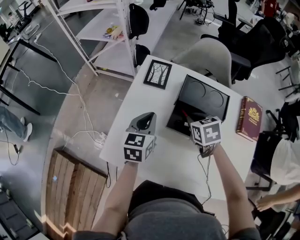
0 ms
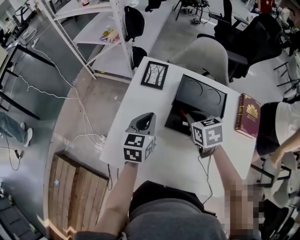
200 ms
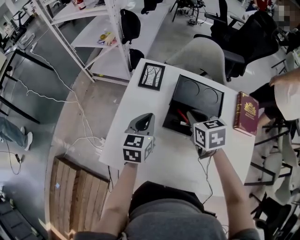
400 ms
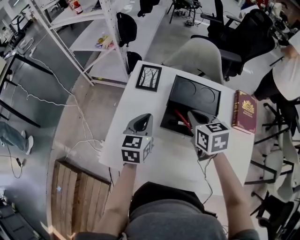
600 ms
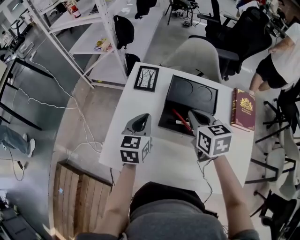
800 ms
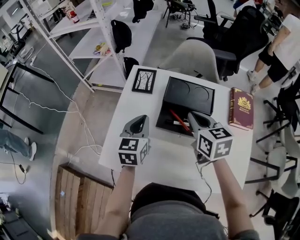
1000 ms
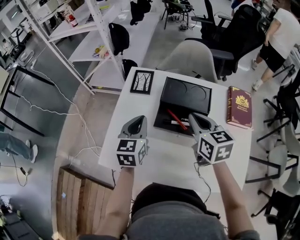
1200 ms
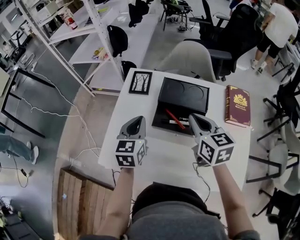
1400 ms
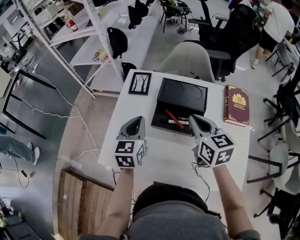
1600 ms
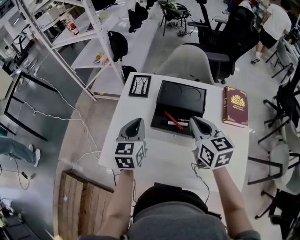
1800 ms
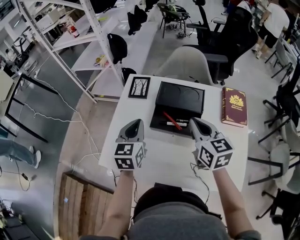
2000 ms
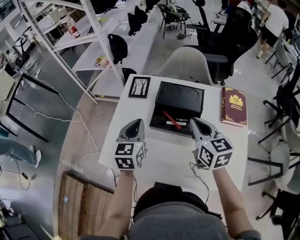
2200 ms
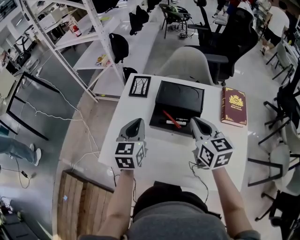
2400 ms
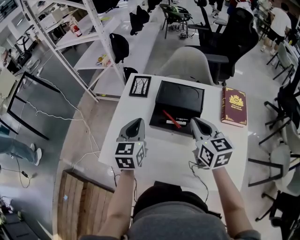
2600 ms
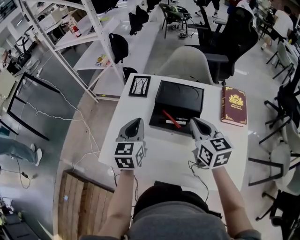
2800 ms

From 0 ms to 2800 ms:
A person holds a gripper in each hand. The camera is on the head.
From 0 ms to 1400 ms: The left gripper goes about 5 cm upward, while the right gripper goes about 15 cm upward and backward, and tilts its fingers roughly 30 degrees upward.
From 1400 ms to 2800 ms: The grippers move only a little.

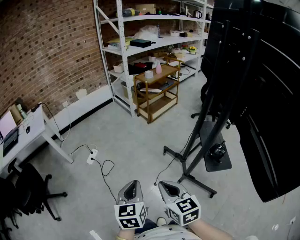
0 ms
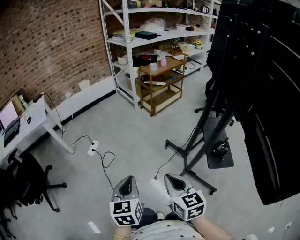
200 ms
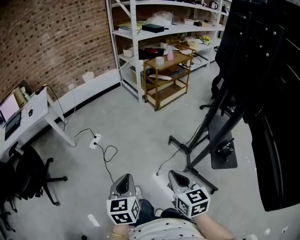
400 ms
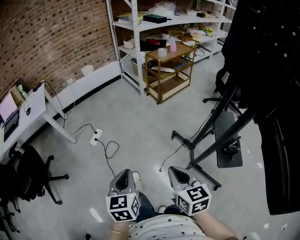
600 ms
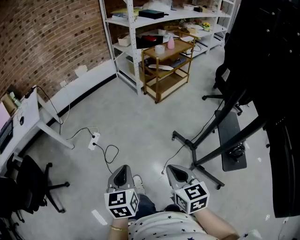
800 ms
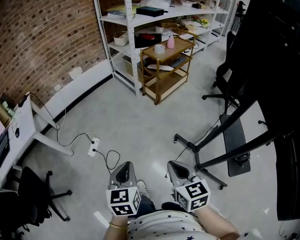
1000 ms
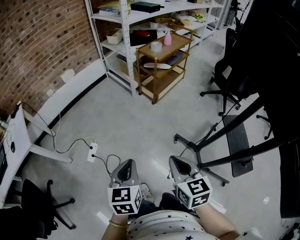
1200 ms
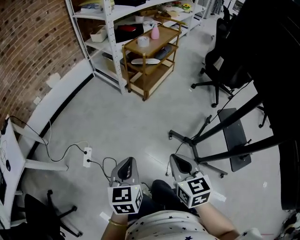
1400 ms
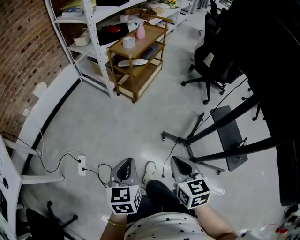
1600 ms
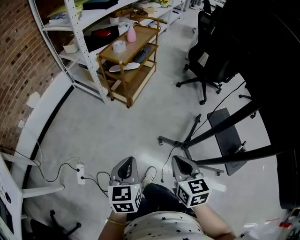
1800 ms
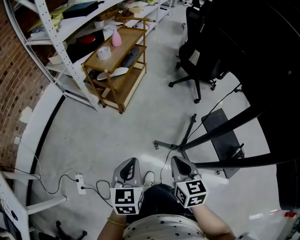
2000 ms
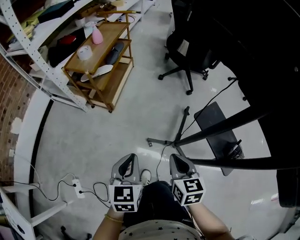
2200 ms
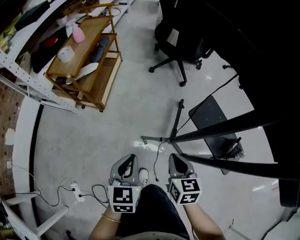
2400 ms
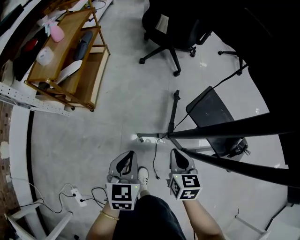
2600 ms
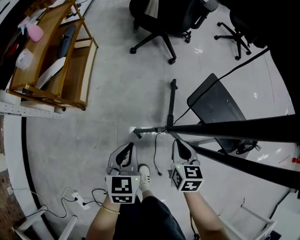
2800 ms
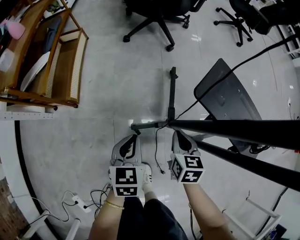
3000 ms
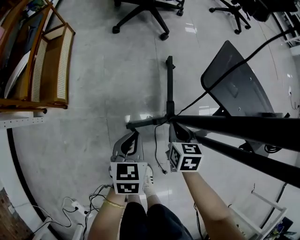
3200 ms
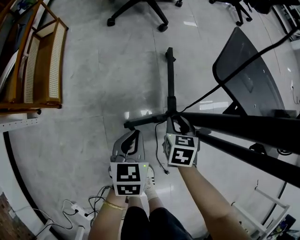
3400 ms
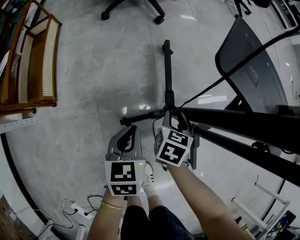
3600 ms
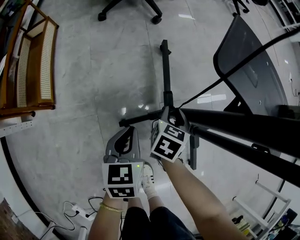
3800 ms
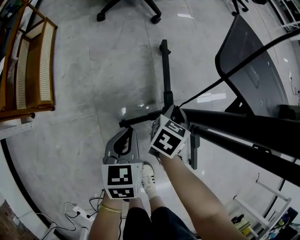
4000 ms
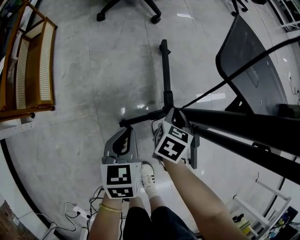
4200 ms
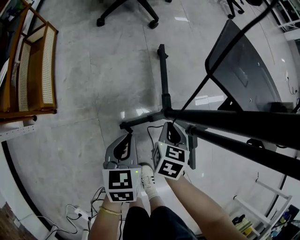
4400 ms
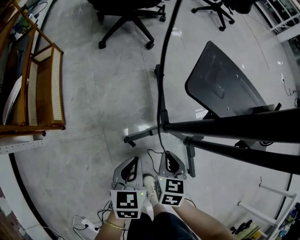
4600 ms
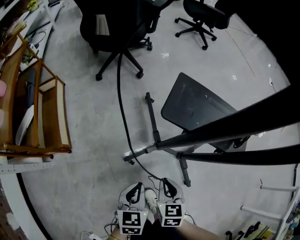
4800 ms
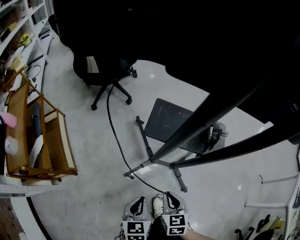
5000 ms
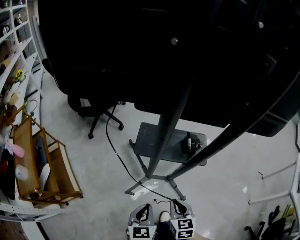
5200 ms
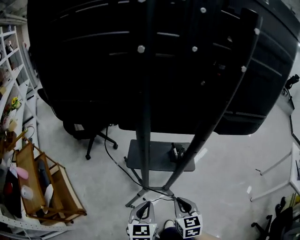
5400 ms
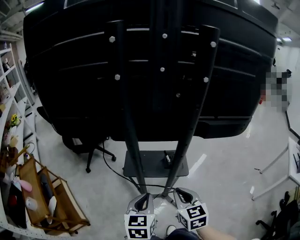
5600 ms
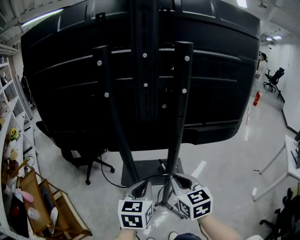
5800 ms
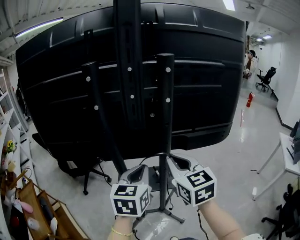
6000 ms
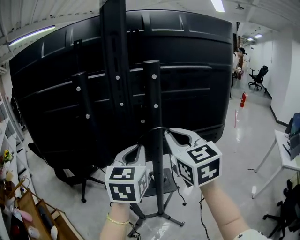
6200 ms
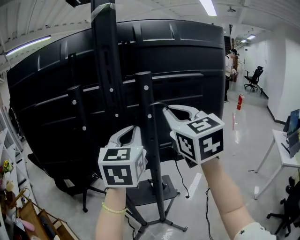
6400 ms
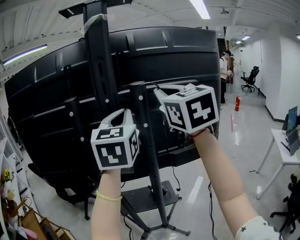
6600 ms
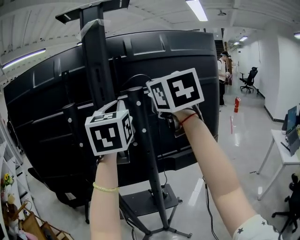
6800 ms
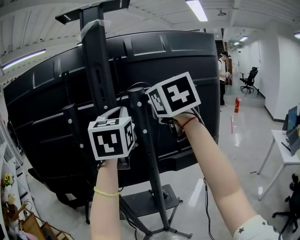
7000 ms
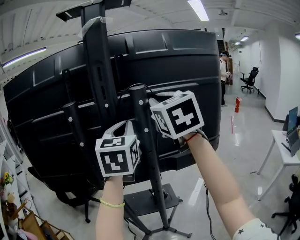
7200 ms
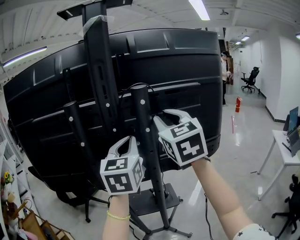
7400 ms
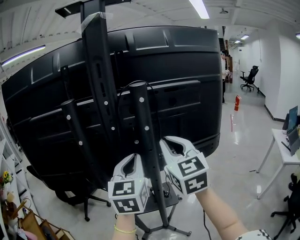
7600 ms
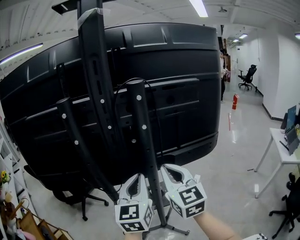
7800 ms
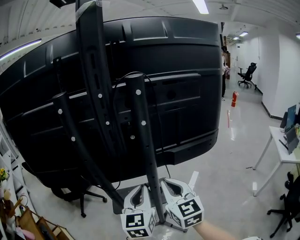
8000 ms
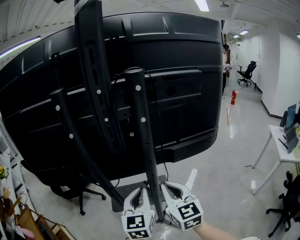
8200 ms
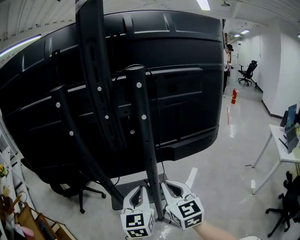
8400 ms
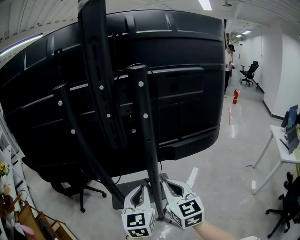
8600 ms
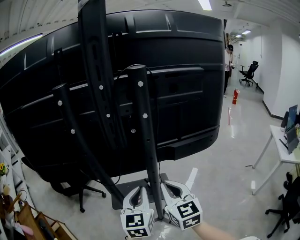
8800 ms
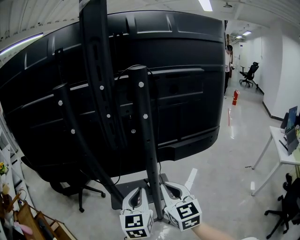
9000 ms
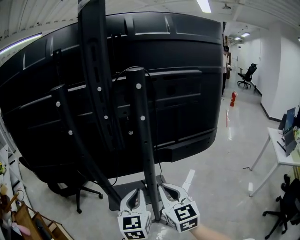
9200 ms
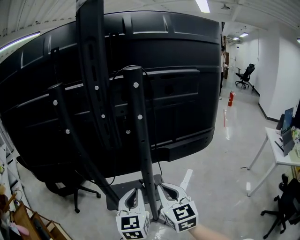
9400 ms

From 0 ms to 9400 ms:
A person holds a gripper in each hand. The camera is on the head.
From 0 ms to 1600 ms: The pair of grippers is taken about 40 cm. The right gripper rotates about 30 degrees, while the left gripper changes its angle by some 20 degrees.
From 1600 ms to 3200 ms: The left gripper shifts by approximately 60 cm, and rotates some 50 degrees. Meanwhile the right gripper heads downward, covering some 50 cm, and changes its angle by about 50 degrees.
From 3200 ms to 4800 ms: The right gripper moves upward and backward, approximately 20 cm, and opens, then closes again. The left gripper goes about 15 cm upward, backward and to the right.
From 4800 ms to 6200 ms: Both grippers travel together upward, about 70 cm. The right gripper angles its fingers upward, by approximately 40 degrees. Meanwhile the left gripper points its fingers approximately 30 degrees further upward.
From 6200 ms to 7800 ms: The right gripper moves about 20 cm upward and comes back, and opens, then closes again. Meanwhile the left gripper travels upward and back again, roughly 20 cm each way.
From 7800 ms to 9400 ms: Both grippers move downward, some 10 cm.

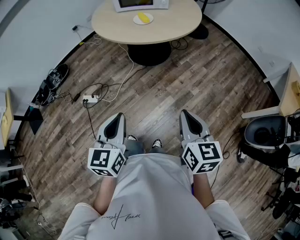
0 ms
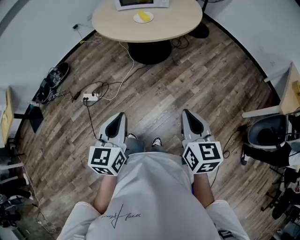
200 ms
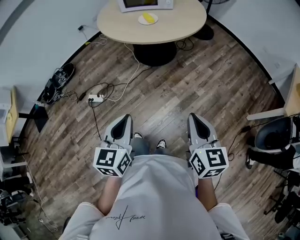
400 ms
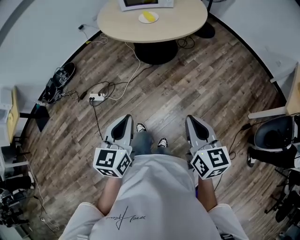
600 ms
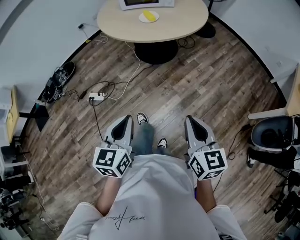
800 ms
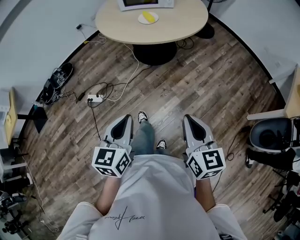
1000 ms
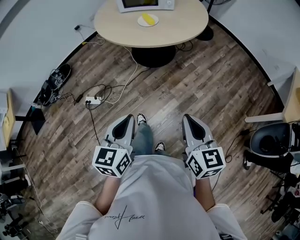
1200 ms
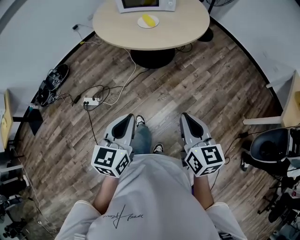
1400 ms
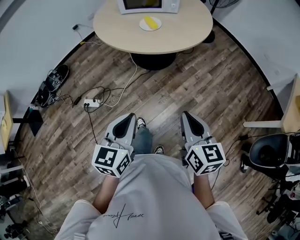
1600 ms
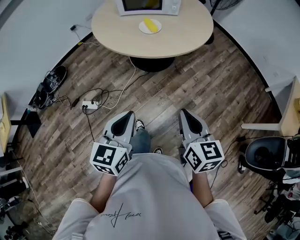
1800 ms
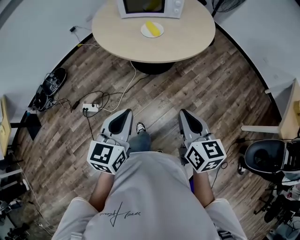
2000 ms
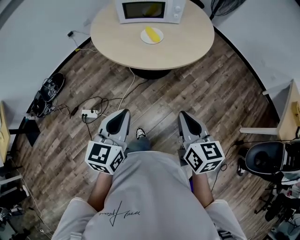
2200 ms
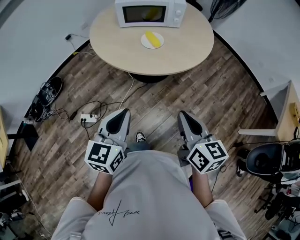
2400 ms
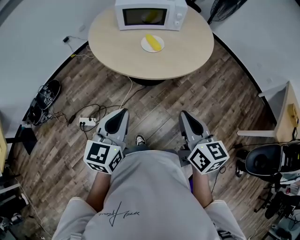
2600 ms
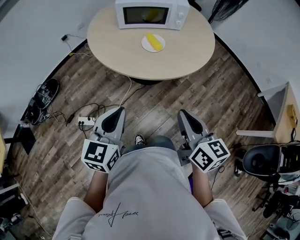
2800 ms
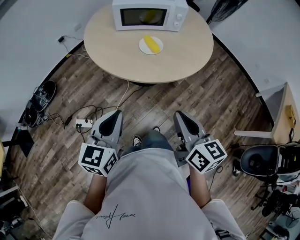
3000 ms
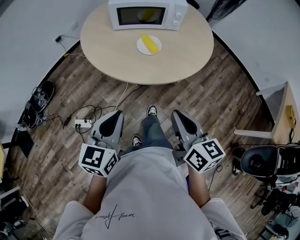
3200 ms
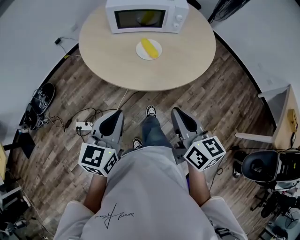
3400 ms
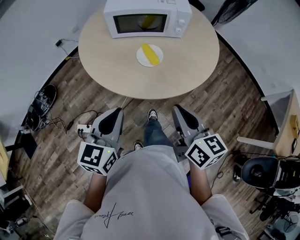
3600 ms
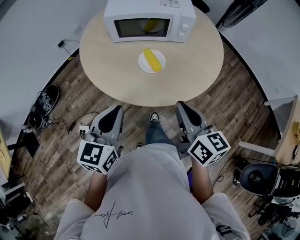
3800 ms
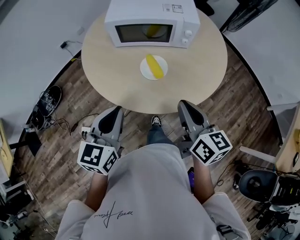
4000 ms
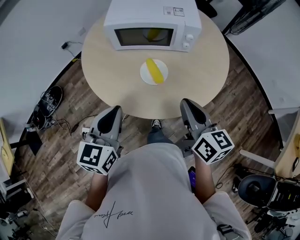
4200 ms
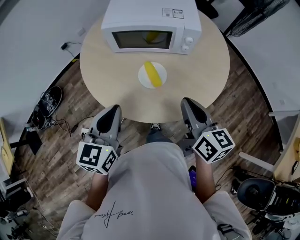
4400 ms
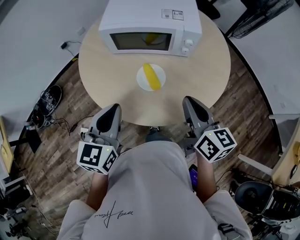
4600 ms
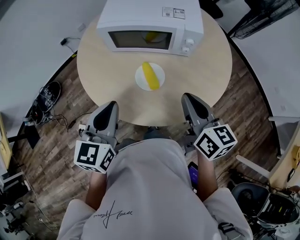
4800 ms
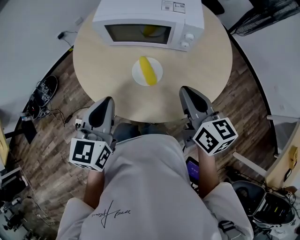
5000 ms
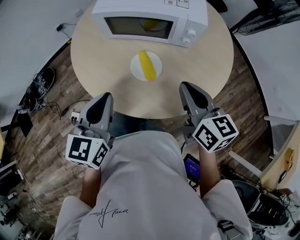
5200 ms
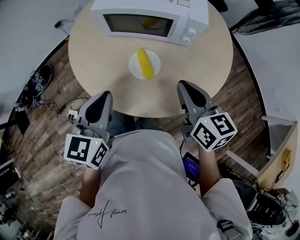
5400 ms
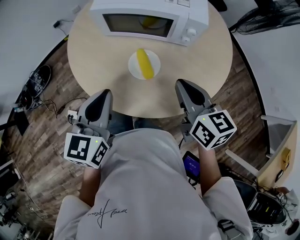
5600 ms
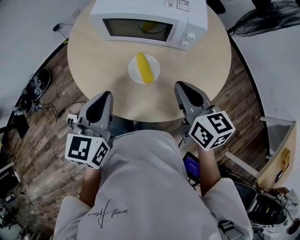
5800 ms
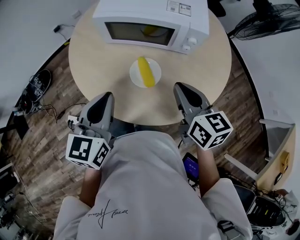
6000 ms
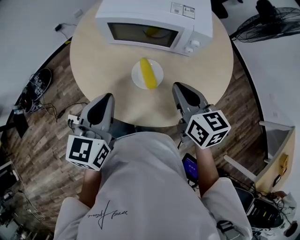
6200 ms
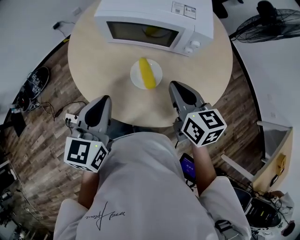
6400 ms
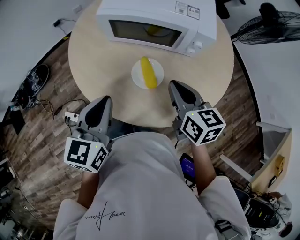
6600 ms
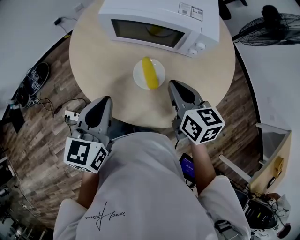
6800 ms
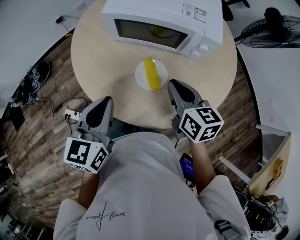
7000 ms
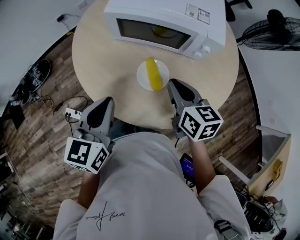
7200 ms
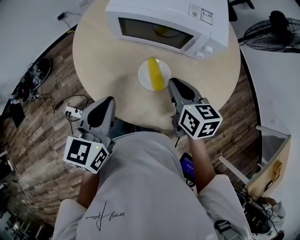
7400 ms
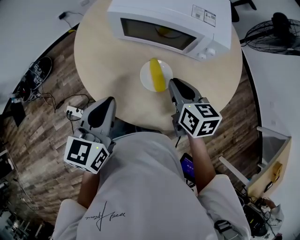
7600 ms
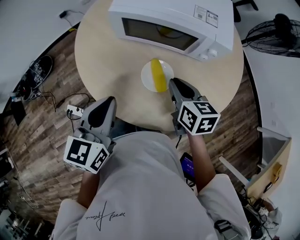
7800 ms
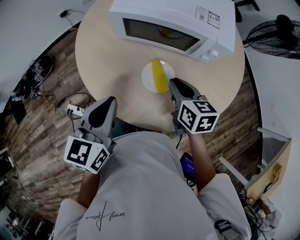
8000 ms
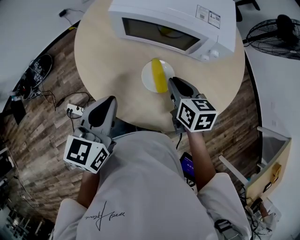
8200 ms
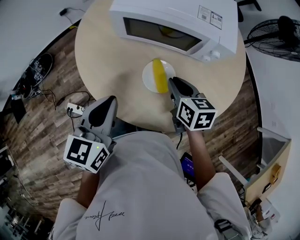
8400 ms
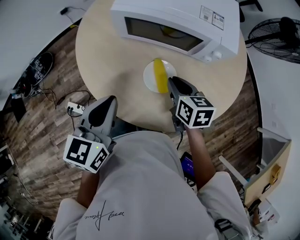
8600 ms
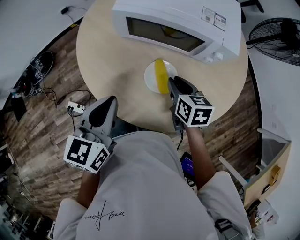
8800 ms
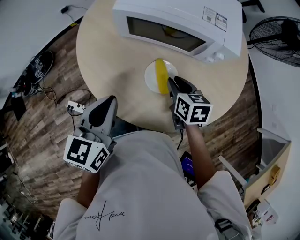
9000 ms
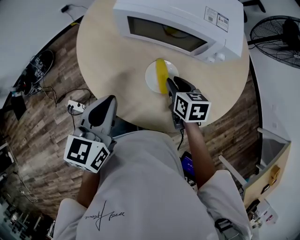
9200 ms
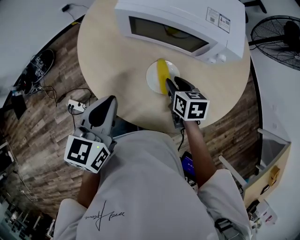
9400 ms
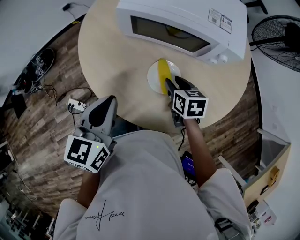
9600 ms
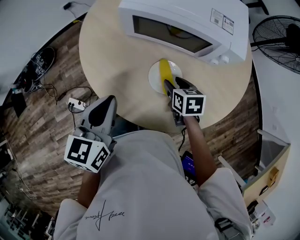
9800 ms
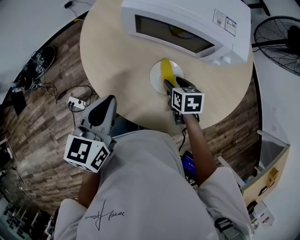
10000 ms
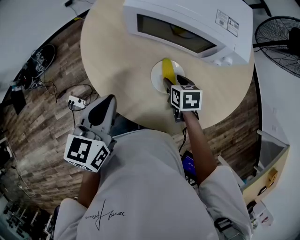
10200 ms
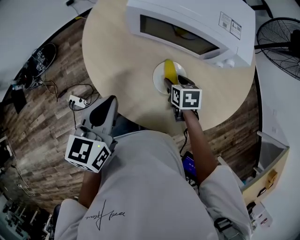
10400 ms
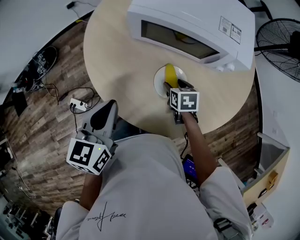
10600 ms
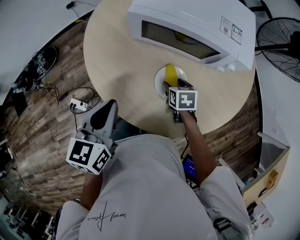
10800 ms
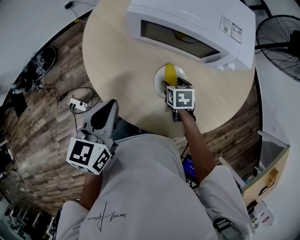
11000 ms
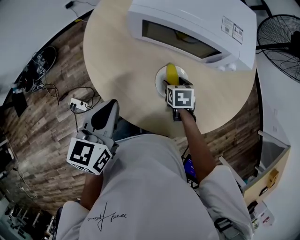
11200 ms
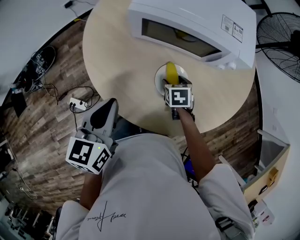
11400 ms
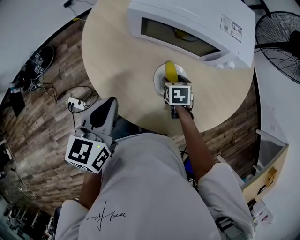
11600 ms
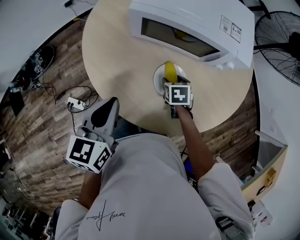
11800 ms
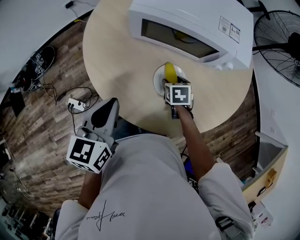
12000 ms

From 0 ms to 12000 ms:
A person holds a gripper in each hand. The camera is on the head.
From 0 ms to 1600 ms: The grippers both shift forward by roughly 10 cm.
From 1600 ms to 3000 ms: Both grippers move forward and to the left, some 25 cm.
From 3000 ms to 4400 ms: Both grippers move forward, approximately 30 cm.
From 4400 ms to 6000 ms: Both grippers travel together forward, roughly 10 cm.
From 6000 ms to 7600 ms: The right gripper travels downward and forward by some 10 cm.
From 7600 ms to 9000 ms: The right gripper moves downward, approximately 5 cm.
From 9000 ms to 10400 ms: The right gripper is displaced downward by some 10 cm, and opens its fingers.
From 10400 ms to 12000 ms: There are only small adjustments of the grippers.
